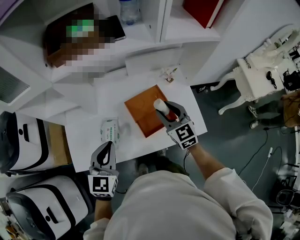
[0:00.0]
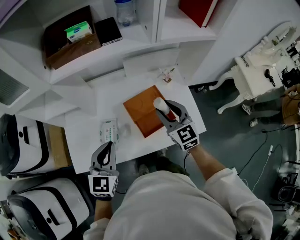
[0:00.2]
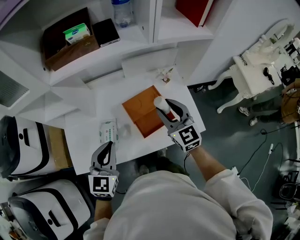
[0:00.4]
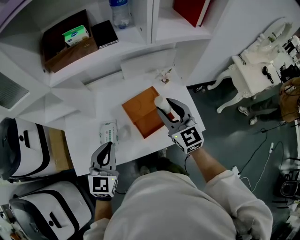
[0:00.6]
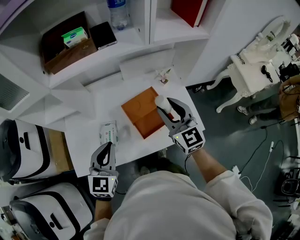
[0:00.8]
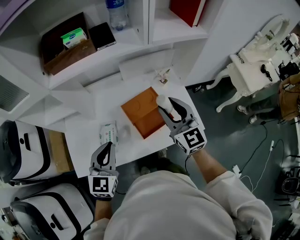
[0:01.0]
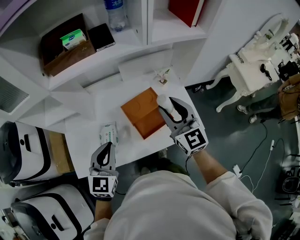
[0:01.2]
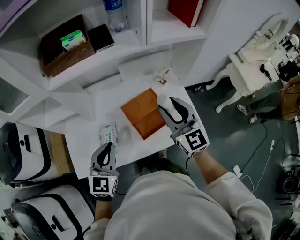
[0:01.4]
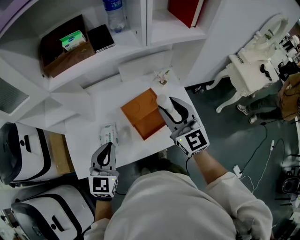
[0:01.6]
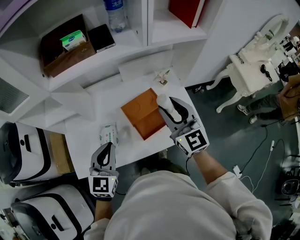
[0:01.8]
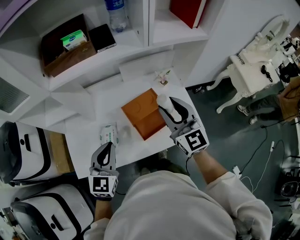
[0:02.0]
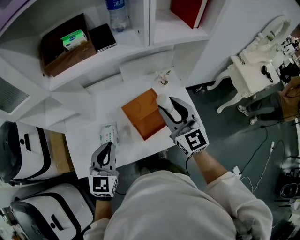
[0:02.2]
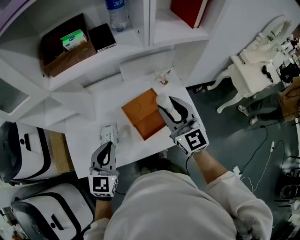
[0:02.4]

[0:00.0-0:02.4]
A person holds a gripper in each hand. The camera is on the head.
0:00.0 to 0:01.2: The right gripper heads upward, covering some 10 cm.
0:01.2 to 0:02.4: Neither gripper changes place.

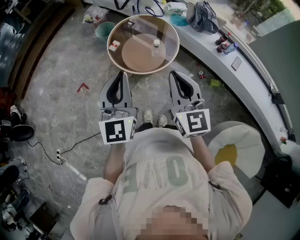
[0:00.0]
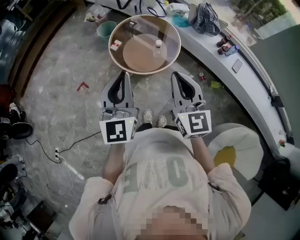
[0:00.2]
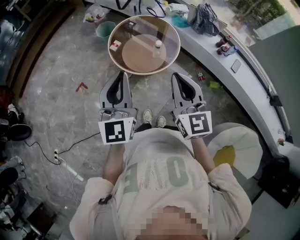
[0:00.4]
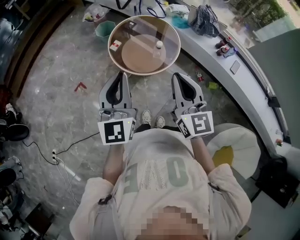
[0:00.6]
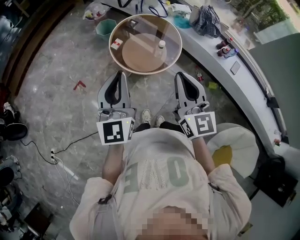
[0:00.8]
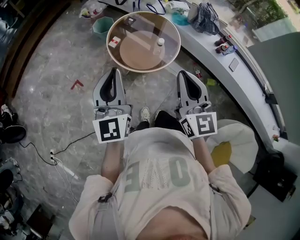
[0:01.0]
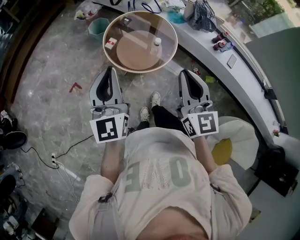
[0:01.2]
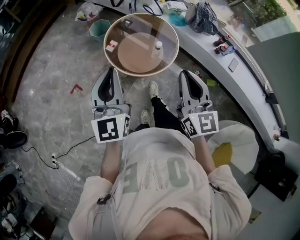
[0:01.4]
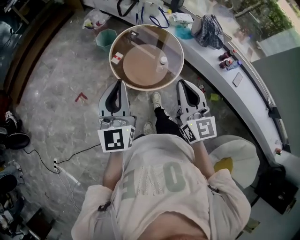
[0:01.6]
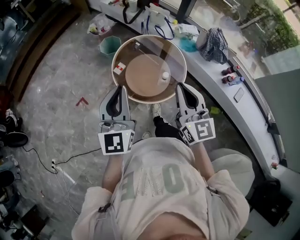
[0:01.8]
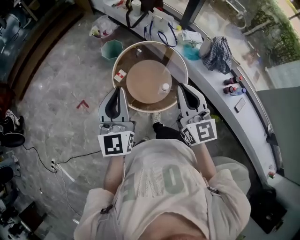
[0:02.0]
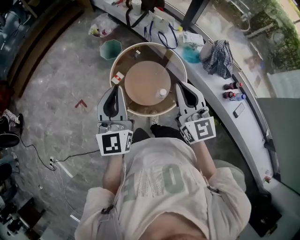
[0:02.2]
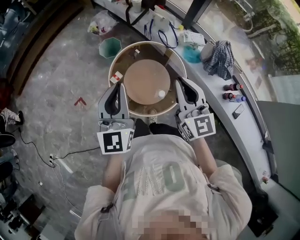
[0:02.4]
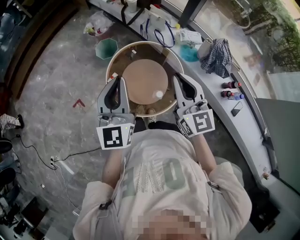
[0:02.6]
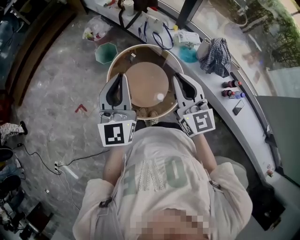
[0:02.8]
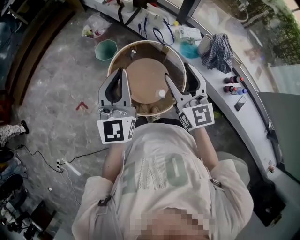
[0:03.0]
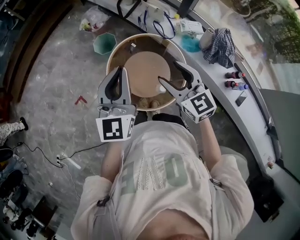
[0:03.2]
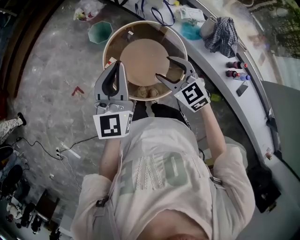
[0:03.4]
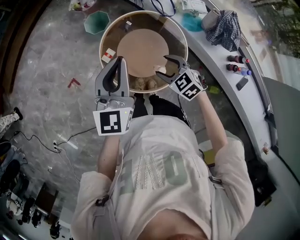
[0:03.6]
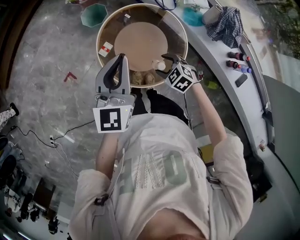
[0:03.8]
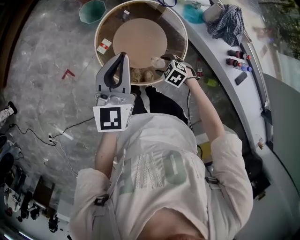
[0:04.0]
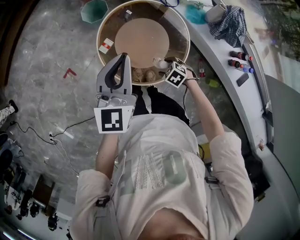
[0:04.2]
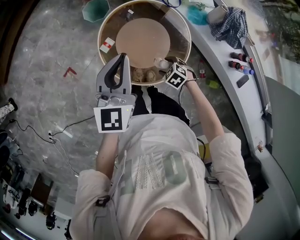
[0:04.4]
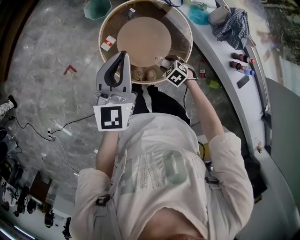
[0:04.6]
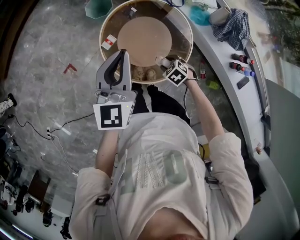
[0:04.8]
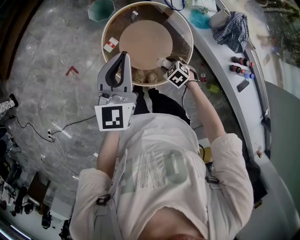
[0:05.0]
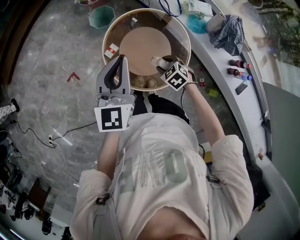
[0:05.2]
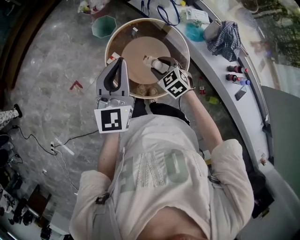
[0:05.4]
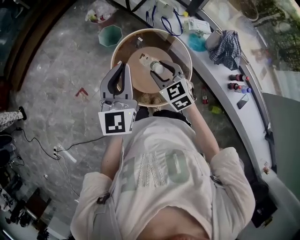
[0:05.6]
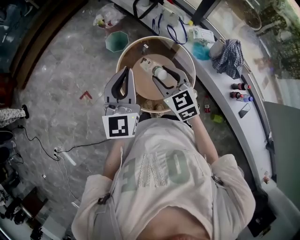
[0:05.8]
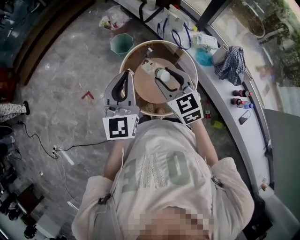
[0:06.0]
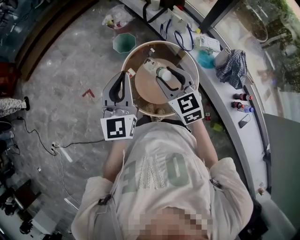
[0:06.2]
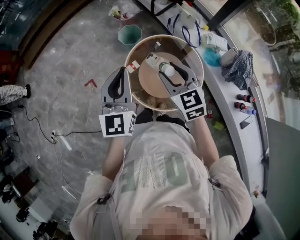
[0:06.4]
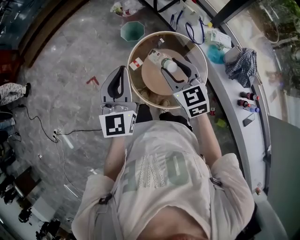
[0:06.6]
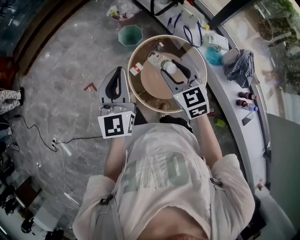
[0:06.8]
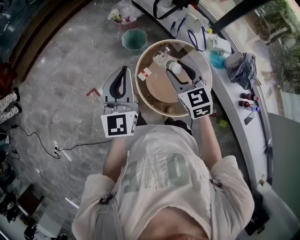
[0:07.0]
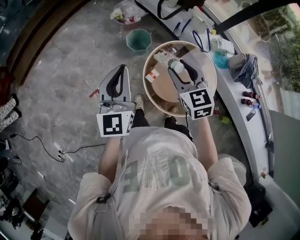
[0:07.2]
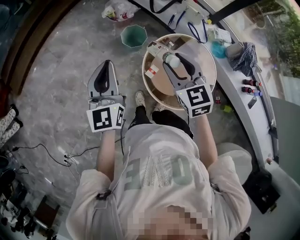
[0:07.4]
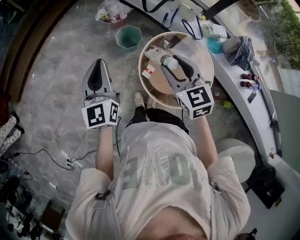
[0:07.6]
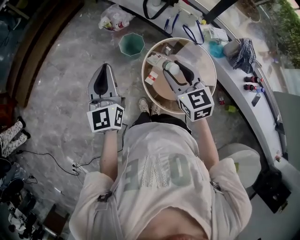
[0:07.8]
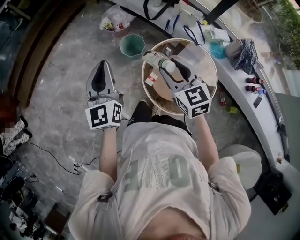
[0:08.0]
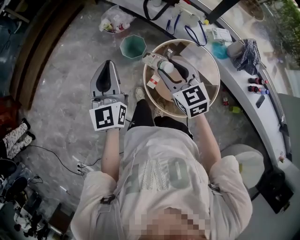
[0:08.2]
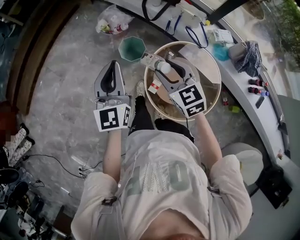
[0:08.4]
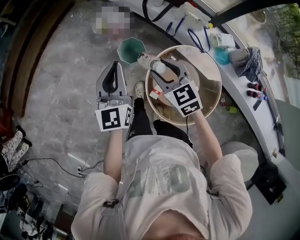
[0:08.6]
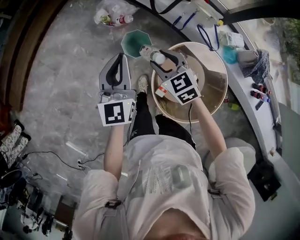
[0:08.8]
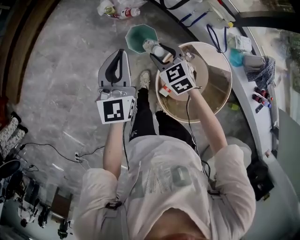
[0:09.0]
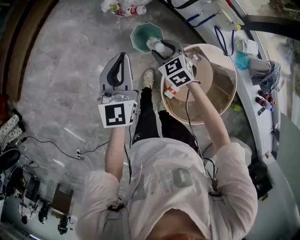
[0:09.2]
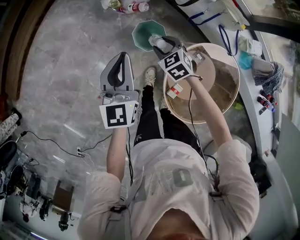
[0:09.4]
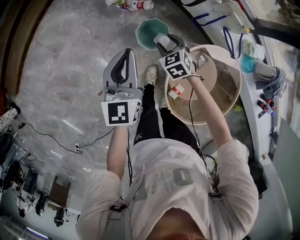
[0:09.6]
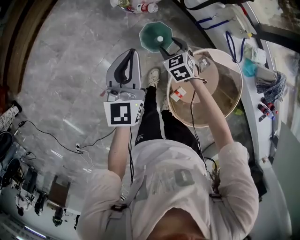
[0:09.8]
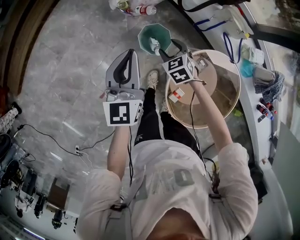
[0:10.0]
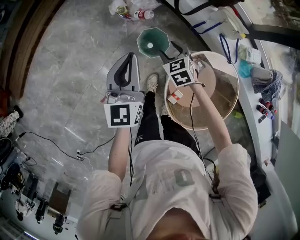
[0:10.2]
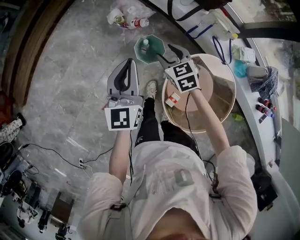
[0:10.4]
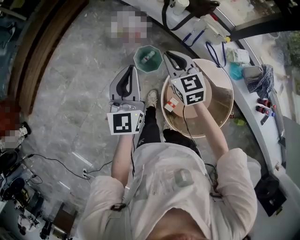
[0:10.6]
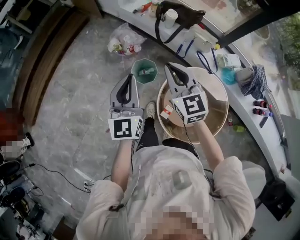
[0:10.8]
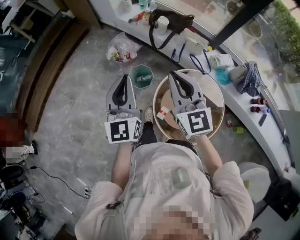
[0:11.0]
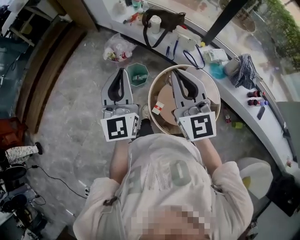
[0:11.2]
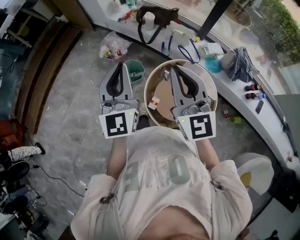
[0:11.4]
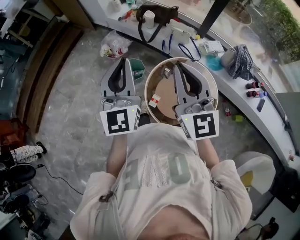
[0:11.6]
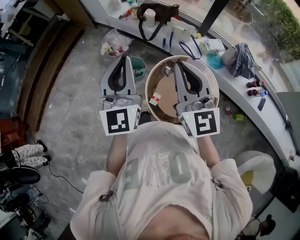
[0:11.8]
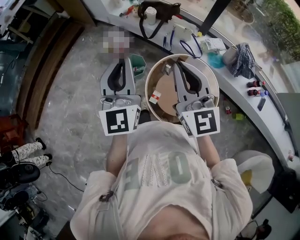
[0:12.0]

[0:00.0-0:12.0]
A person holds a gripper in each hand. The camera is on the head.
0:00.0 to 0:01.6: The grippers both shift forward by about 10 cm.
0:01.6 to 0:03.0: The grippers both shift forward by approximately 25 cm. The right gripper opens.
0:03.0 to 0:04.4: The right gripper moves downward, about 40 cm, and tips its fingers downward by about 70 degrees. Meanwhile the left gripper shifts about 10 cm downward.
0:04.4 to 0:06.0: The left gripper heads upward, covering about 10 cm, while the right gripper travels upward by some 35 cm, and points its fingers roughly 40 degrees further upward.
0:06.0 to 0:07.6: The left gripper moves to the left and forward, some 30 cm, while the right gripper heads to the left and forward, covering approximately 20 cm.
0:07.6 to 0:09.0: Both grippers travel together forward and downward, approximately 30 cm. The right gripper changes its angle by about 20 degrees.
0:09.0 to 0:10.4: The right gripper goes downward and returns, about 15 cm each way.
0:10.4 to 0:12.0: The two grippers go roughly 40 cm upward, backward and to the right. The left gripper turns by approximately 20 degrees; the right gripper points its fingers some 50 degrees further upward, and closes.

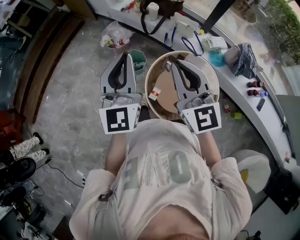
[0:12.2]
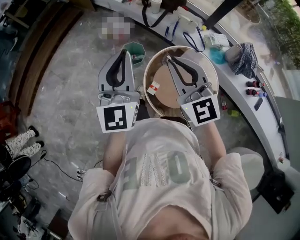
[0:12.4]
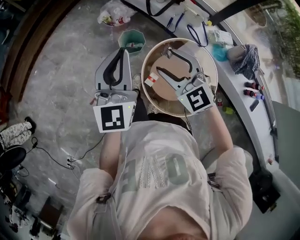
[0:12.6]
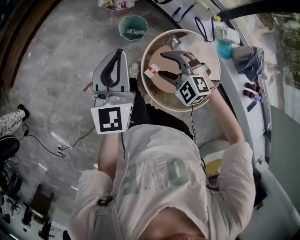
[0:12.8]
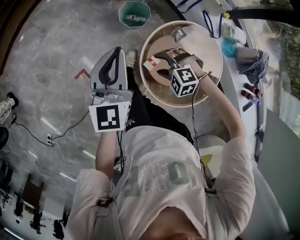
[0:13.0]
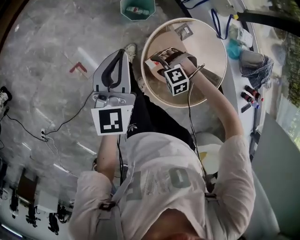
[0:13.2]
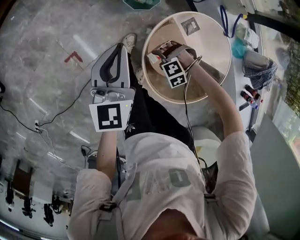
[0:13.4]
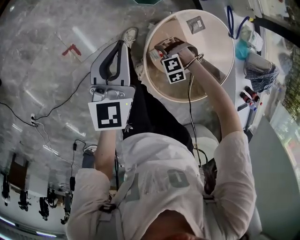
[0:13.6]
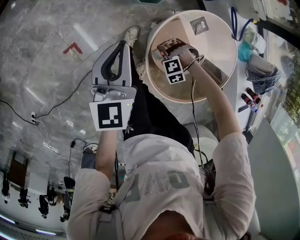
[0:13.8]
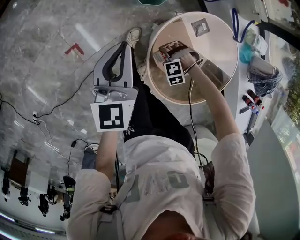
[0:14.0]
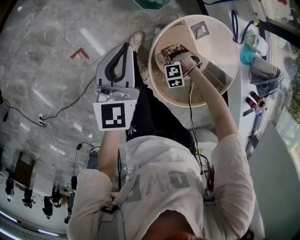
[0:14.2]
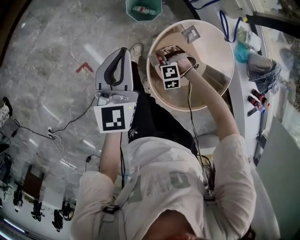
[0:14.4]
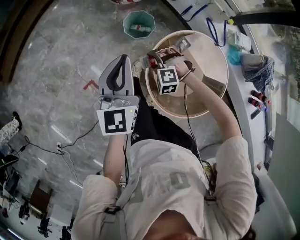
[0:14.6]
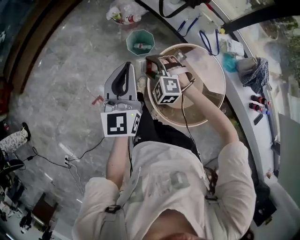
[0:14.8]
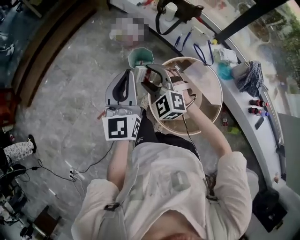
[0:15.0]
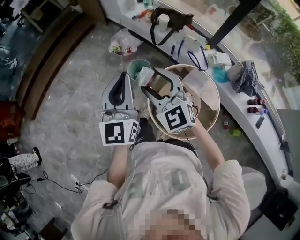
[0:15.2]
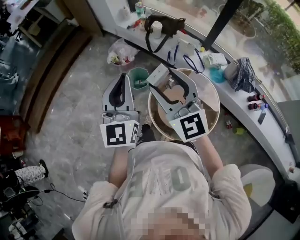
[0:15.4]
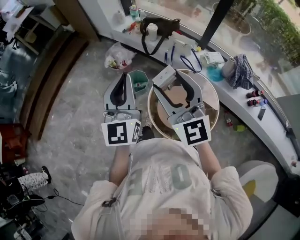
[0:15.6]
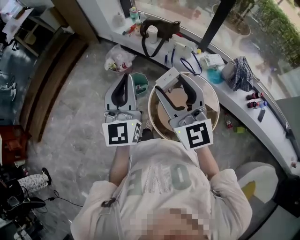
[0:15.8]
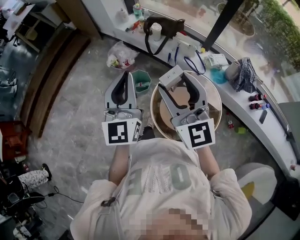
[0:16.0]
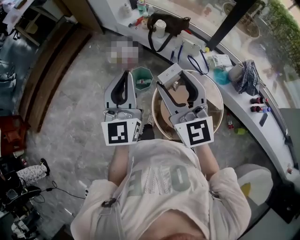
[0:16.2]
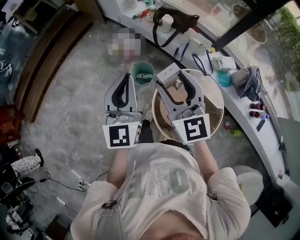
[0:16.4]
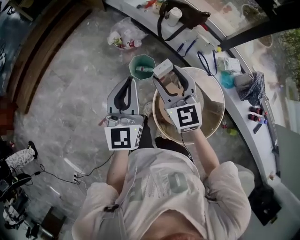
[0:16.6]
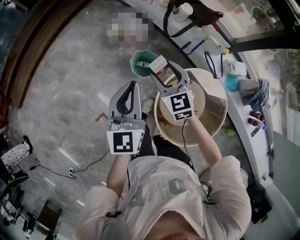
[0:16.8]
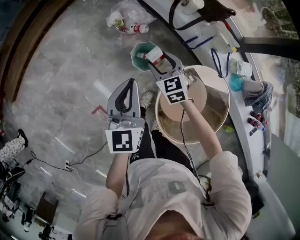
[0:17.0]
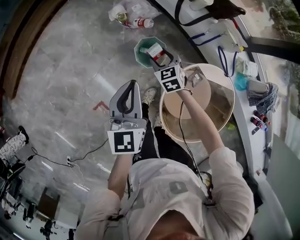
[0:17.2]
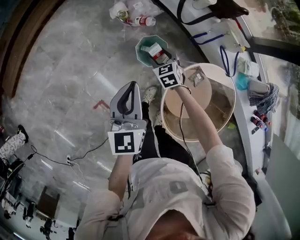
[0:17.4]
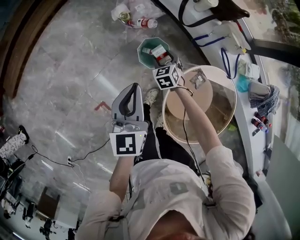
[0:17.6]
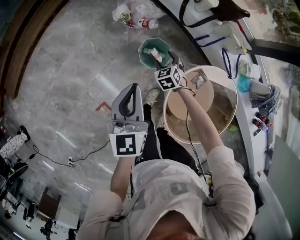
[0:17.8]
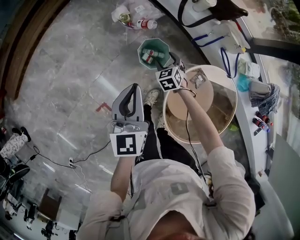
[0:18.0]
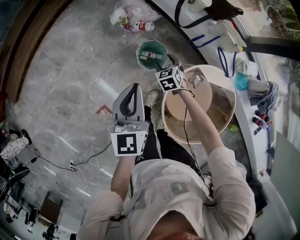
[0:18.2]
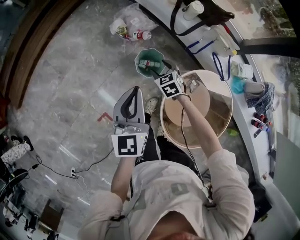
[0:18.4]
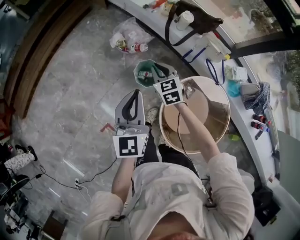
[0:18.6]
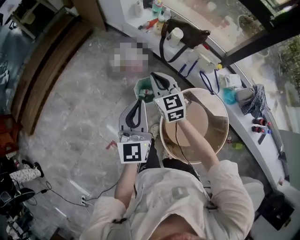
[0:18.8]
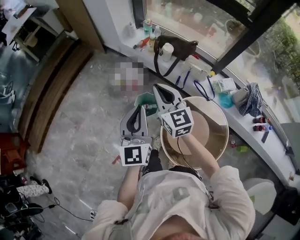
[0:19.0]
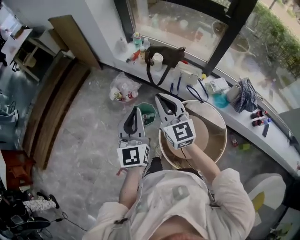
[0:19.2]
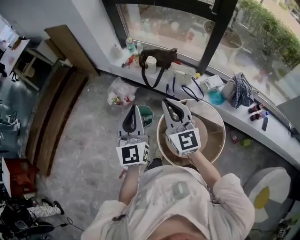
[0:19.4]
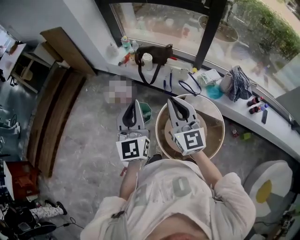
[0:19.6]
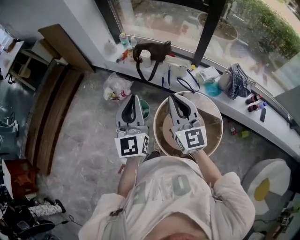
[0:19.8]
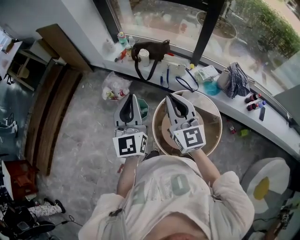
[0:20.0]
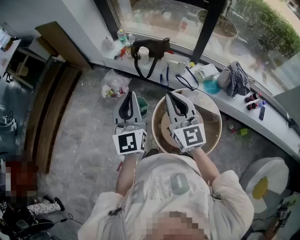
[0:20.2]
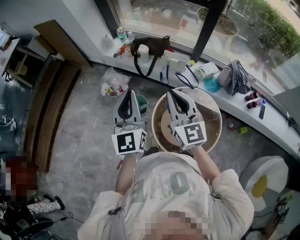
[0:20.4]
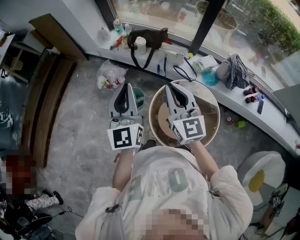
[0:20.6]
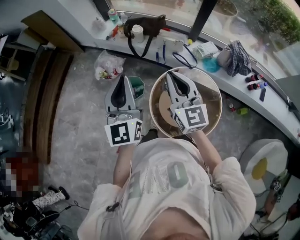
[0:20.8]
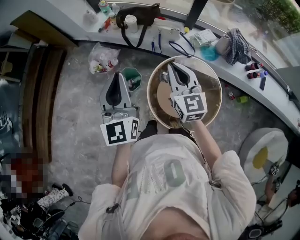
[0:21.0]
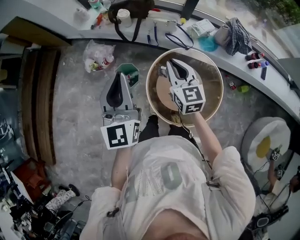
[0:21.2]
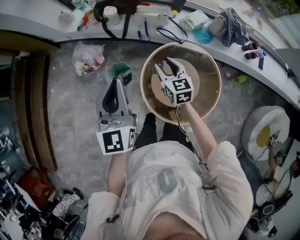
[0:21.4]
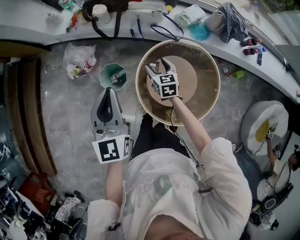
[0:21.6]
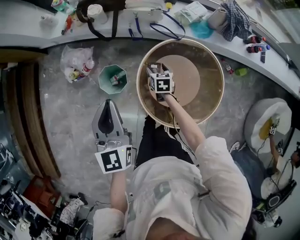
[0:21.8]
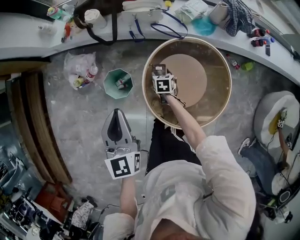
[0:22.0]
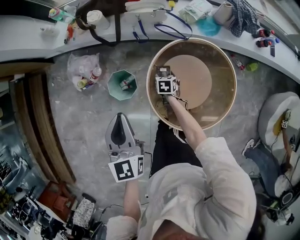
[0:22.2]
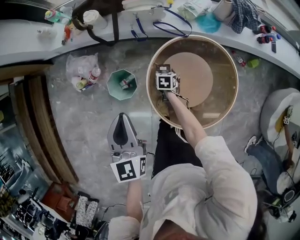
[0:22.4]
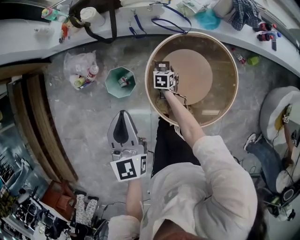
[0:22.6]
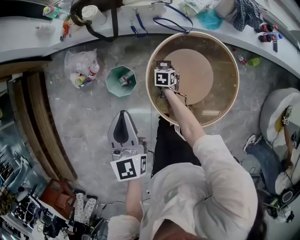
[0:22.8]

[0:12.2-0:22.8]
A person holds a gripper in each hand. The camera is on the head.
0:12.2 to 0:13.8: The right gripper heads downward, covering approximately 60 cm, points its fingers some 80 degrees further downward, and opens up. The left gripper heads downward, covering approximately 35 cm, and rotates approximately 40 degrees.
0:13.8 to 0:15.2: The left gripper goes approximately 30 cm upward, and rotates roughly 30 degrees; the right gripper shifts about 60 cm upward, and points its fingers about 70 degrees further upward.
0:15.2 to 0:16.8: The two grippers go approximately 25 cm forward and downward. The right gripper turns by some 20 degrees.
0:16.8 to 0:18.2: The left gripper travels downward by about 10 cm. Meanwhile the right gripper travels downward by some 25 cm, and changes its angle by approximately 30 degrees.
0:18.2 to 0:19.8: The right gripper shifts about 50 cm upward, angles its fingers upward, by roughly 60 degrees, and closes, while the left gripper travels upward and to the right by roughly 30 cm, and changes its angle by about 30 degrees.
0:19.8 to 0:21.2: The right gripper is displaced downward and forward by roughly 20 cm, and changes its angle by roughly 30 degrees; the left gripper shifts approximately 5 cm downward.
0:21.2 to 0:22.8: The right gripper shifts approximately 50 cm downward, points its fingers roughly 50 degrees further downward, and opens up. The left gripper heads downward, covering approximately 20 cm, and changes its angle by approximately 20 degrees.
